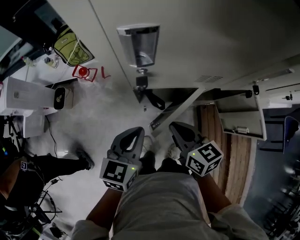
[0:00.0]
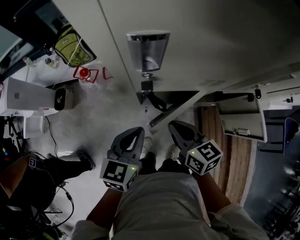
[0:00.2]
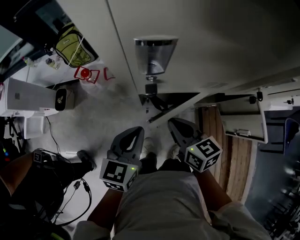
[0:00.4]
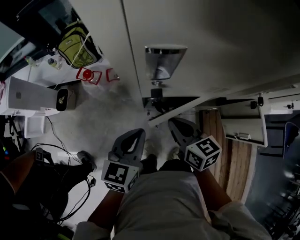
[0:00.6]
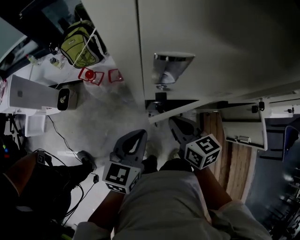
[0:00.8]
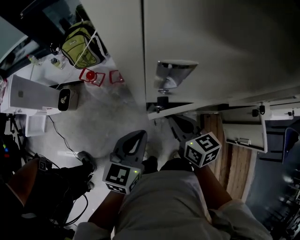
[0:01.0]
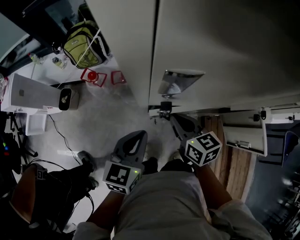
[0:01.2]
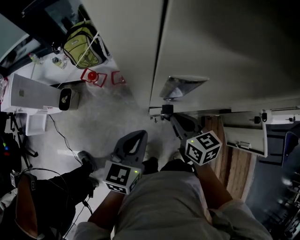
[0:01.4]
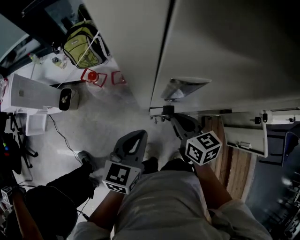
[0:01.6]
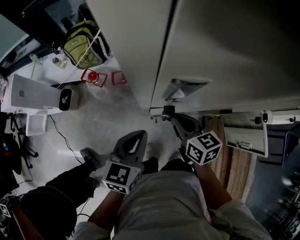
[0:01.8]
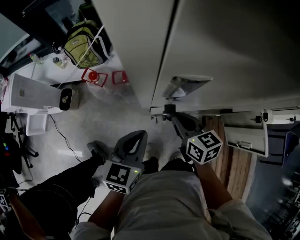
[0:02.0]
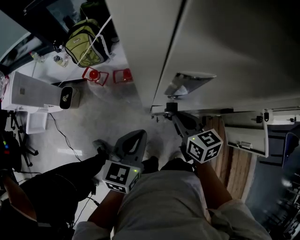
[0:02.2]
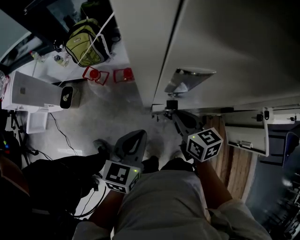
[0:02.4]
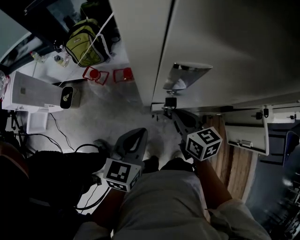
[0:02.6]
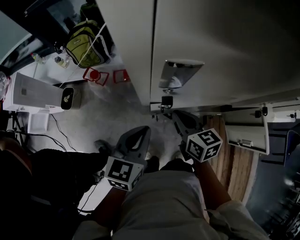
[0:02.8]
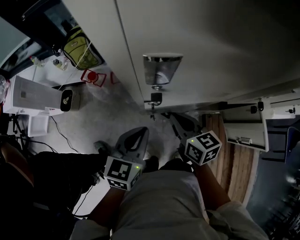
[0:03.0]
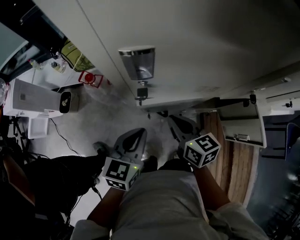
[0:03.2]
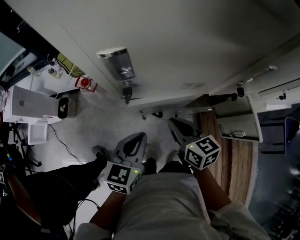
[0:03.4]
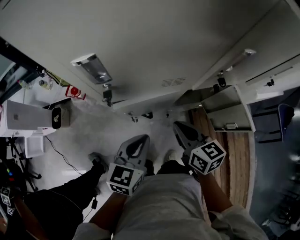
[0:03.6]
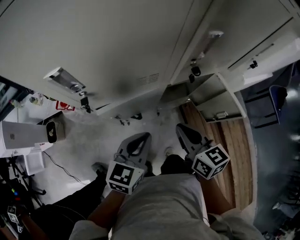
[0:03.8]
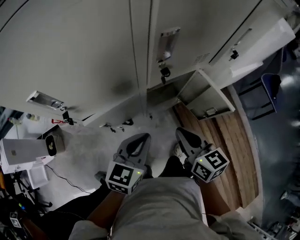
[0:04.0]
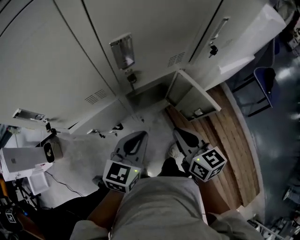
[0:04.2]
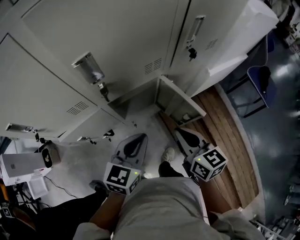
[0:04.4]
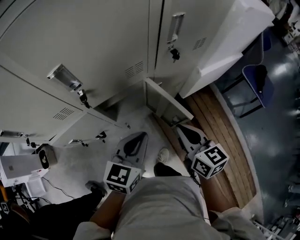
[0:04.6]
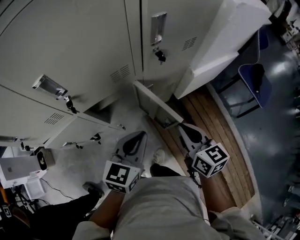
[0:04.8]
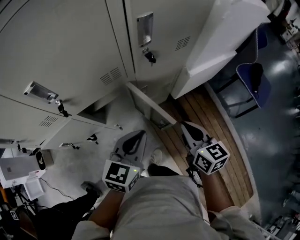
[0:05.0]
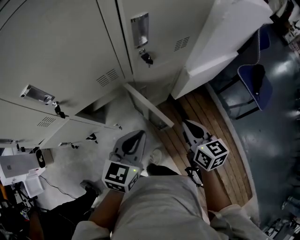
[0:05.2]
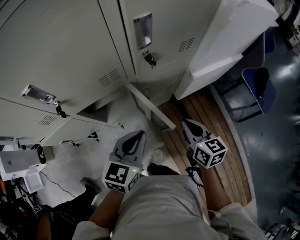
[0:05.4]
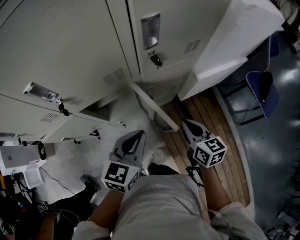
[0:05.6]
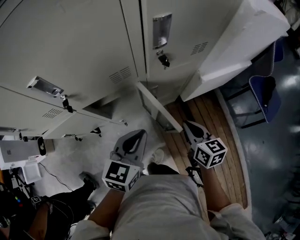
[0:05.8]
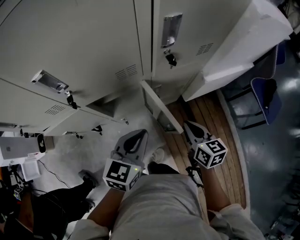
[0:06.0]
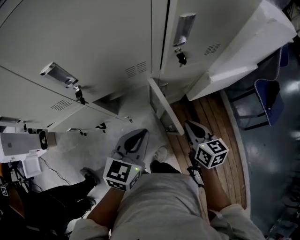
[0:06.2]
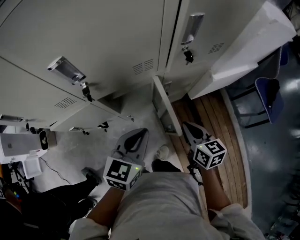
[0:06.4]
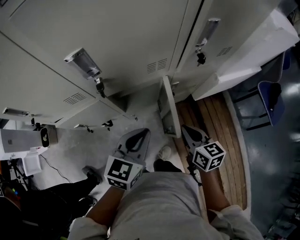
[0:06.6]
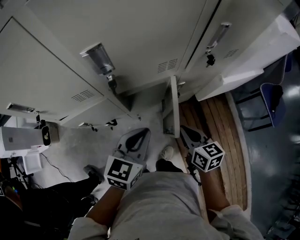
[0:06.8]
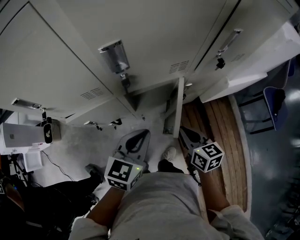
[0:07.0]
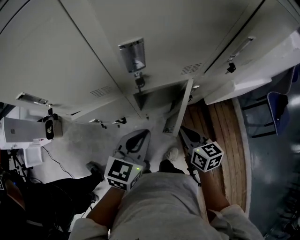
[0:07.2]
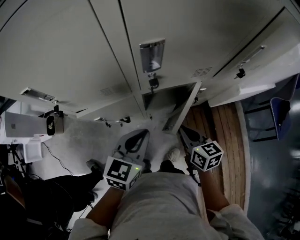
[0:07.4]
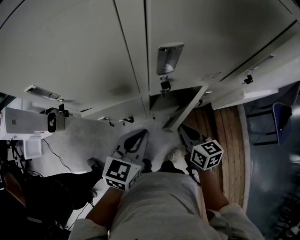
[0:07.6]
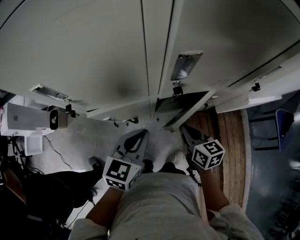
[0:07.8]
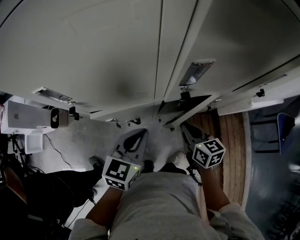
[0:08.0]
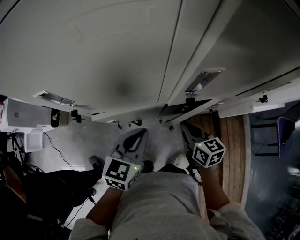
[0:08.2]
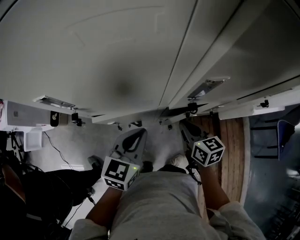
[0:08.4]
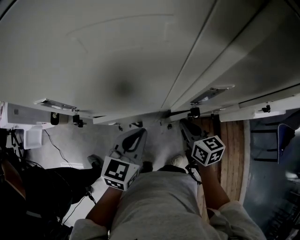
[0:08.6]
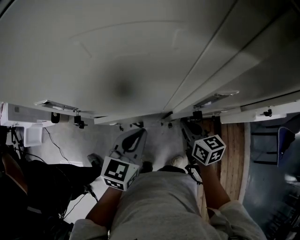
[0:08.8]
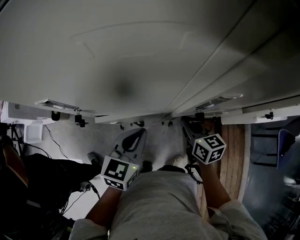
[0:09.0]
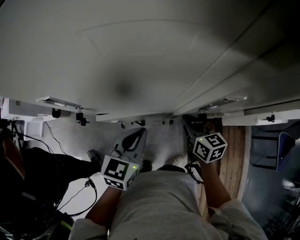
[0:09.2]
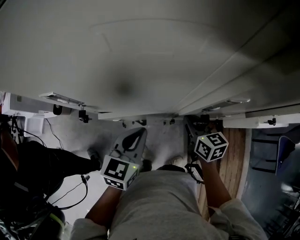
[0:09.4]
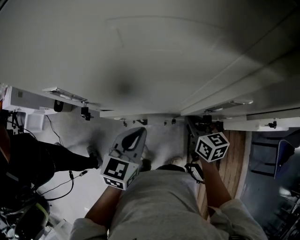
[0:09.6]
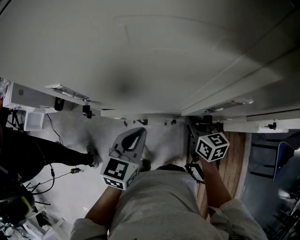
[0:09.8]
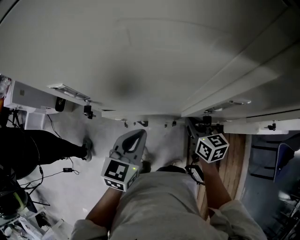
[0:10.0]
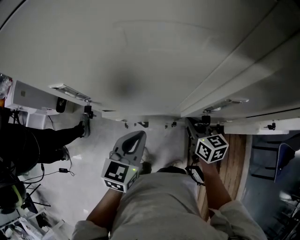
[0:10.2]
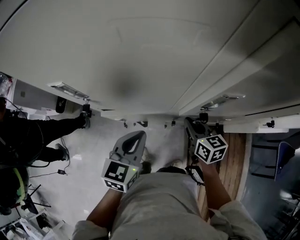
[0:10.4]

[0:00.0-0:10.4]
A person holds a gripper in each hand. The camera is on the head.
0:00.0 to 0:01.4: The right gripper is displaced forward by about 10 cm. Meanwhile the left gripper ends up some 5 cm from where it was.
0:01.4 to 0:03.0: The grippers move only a little.
0:03.0 to 0:04.4: The left gripper changes place by about 40 cm, and rotates about 30 degrees. The right gripper changes place by about 40 cm, and rotates approximately 30 degrees.
0:04.4 to 0:06.0: The right gripper moves to the right, downward and forward, some 20 cm. Meanwhile the left gripper moves to the right, some 10 cm.
0:06.0 to 0:07.4: The two grippers go approximately 20 cm to the left.
0:07.4 to 0:09.0: The left gripper heads to the left and forward, covering about 10 cm; the right gripper heads forward and to the left, covering approximately 15 cm.
0:09.0 to 0:10.4: The grippers move only a little.

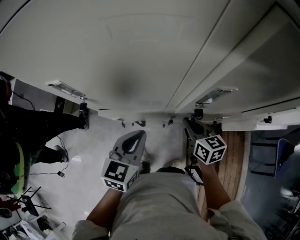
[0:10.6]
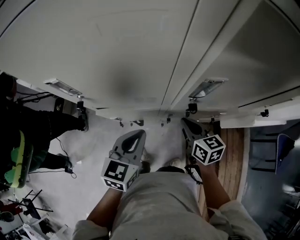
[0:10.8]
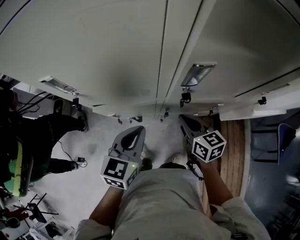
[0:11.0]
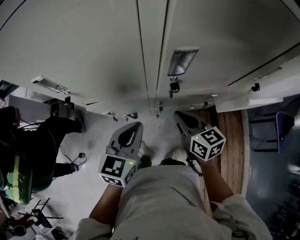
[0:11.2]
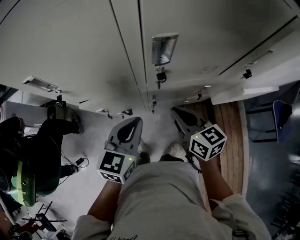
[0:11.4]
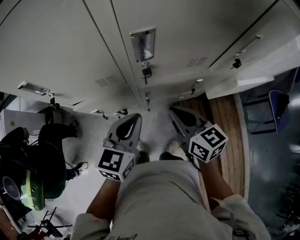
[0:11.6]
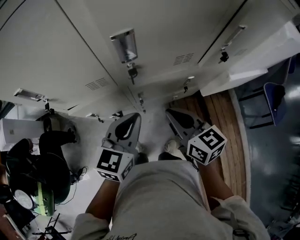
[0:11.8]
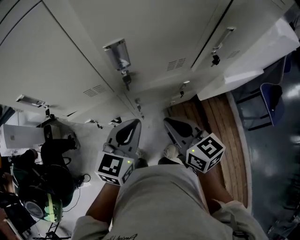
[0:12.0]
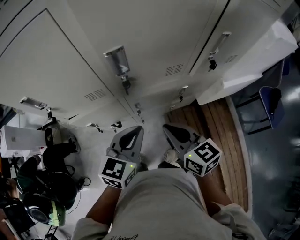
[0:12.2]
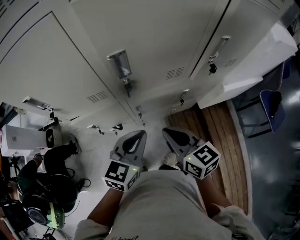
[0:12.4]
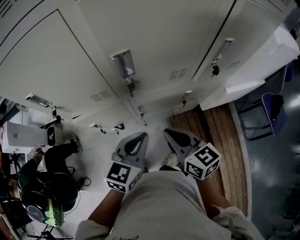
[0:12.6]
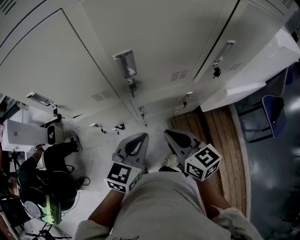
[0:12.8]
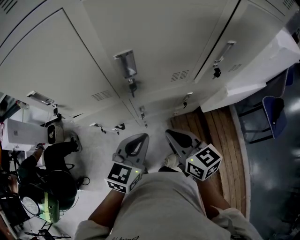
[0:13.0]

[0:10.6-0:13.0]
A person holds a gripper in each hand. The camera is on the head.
0:10.6 to 0:11.8: The left gripper goes roughly 15 cm to the right and backward, while the right gripper is displaced backward, upward and to the right by roughly 15 cm.
0:11.8 to 0:13.0: The grippers move only a little.

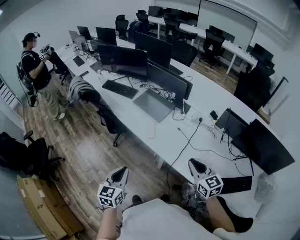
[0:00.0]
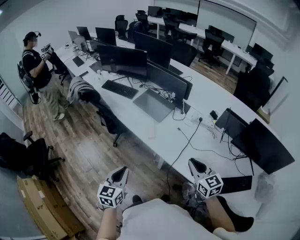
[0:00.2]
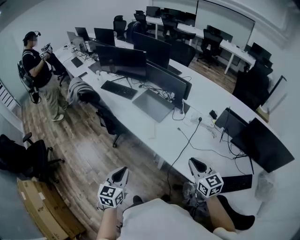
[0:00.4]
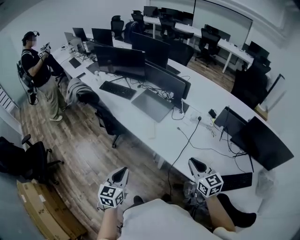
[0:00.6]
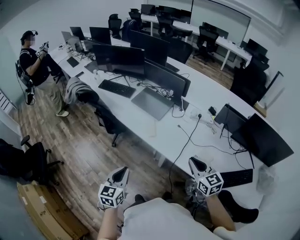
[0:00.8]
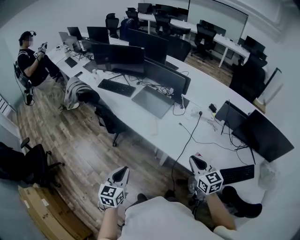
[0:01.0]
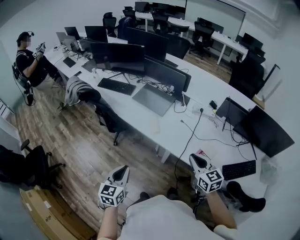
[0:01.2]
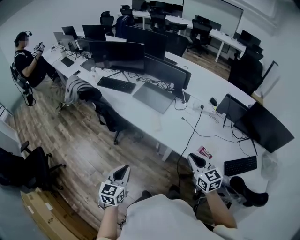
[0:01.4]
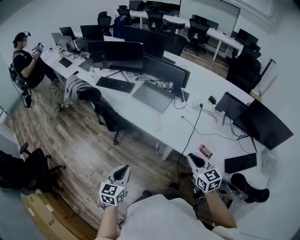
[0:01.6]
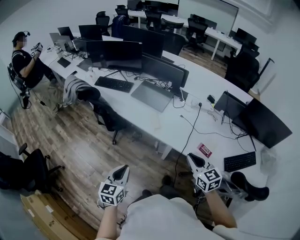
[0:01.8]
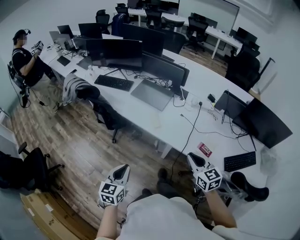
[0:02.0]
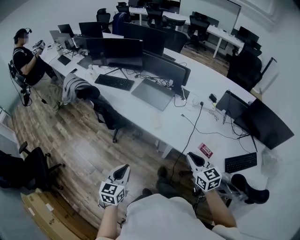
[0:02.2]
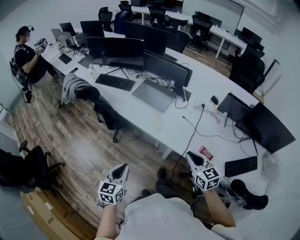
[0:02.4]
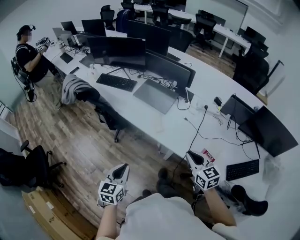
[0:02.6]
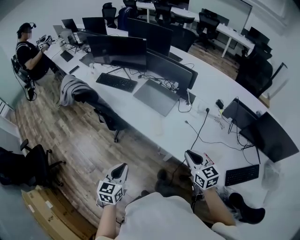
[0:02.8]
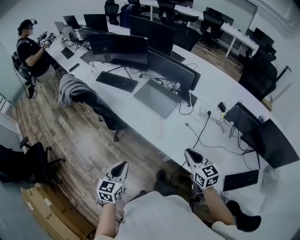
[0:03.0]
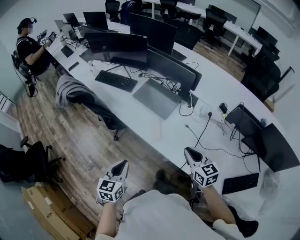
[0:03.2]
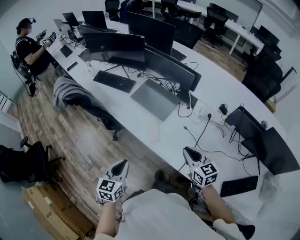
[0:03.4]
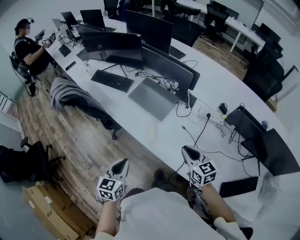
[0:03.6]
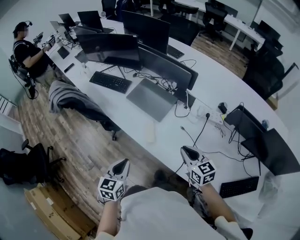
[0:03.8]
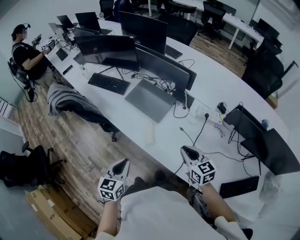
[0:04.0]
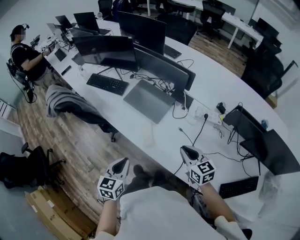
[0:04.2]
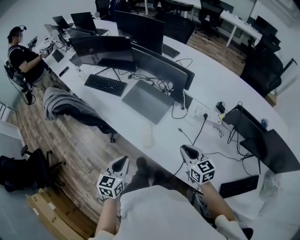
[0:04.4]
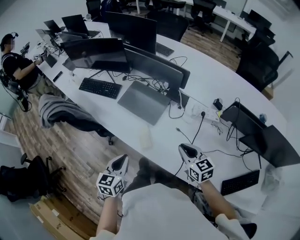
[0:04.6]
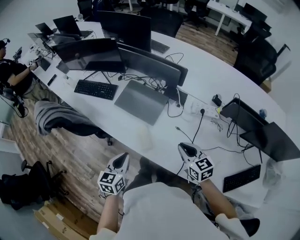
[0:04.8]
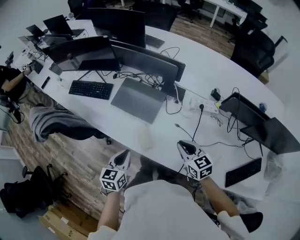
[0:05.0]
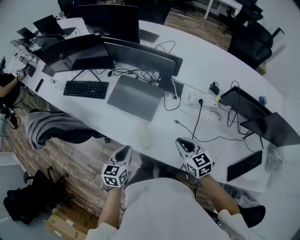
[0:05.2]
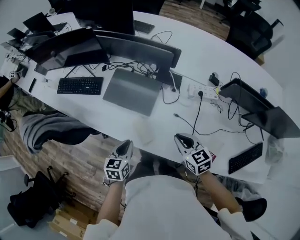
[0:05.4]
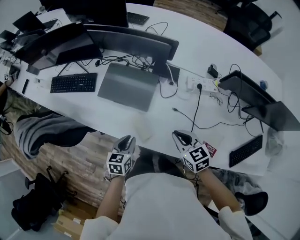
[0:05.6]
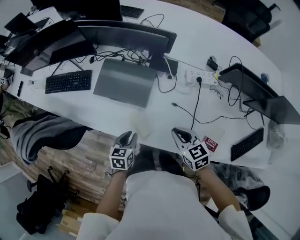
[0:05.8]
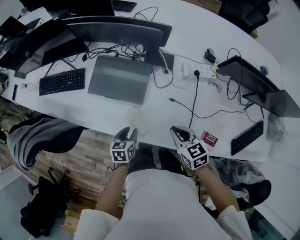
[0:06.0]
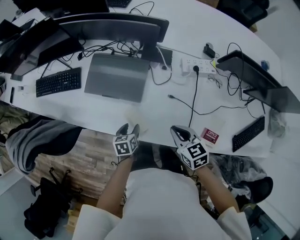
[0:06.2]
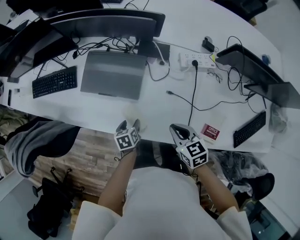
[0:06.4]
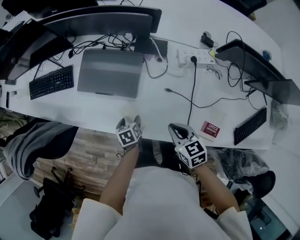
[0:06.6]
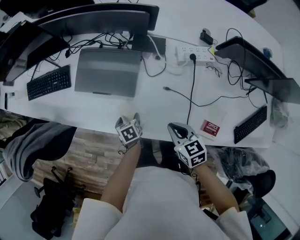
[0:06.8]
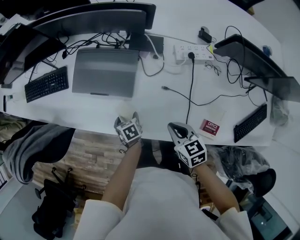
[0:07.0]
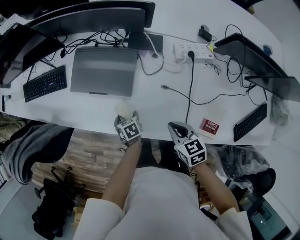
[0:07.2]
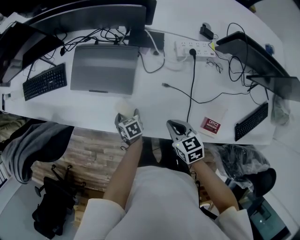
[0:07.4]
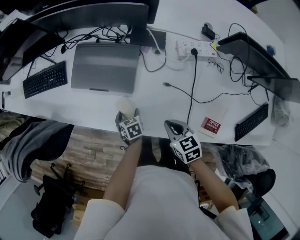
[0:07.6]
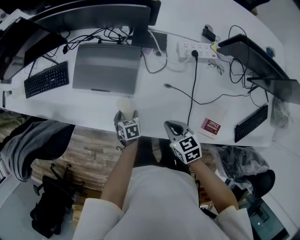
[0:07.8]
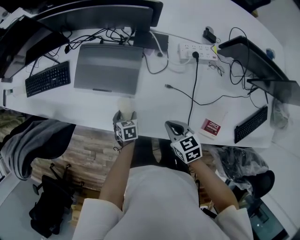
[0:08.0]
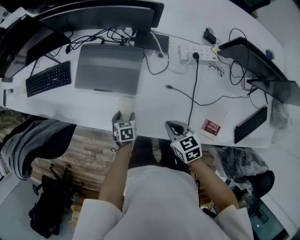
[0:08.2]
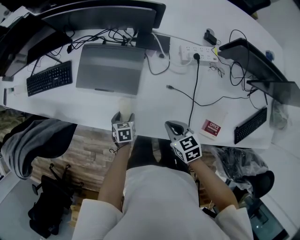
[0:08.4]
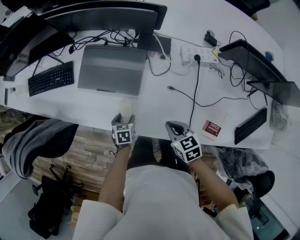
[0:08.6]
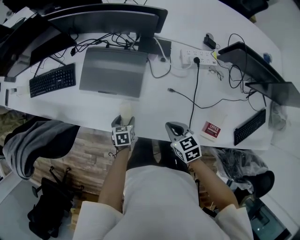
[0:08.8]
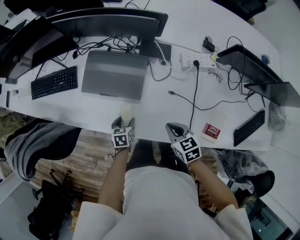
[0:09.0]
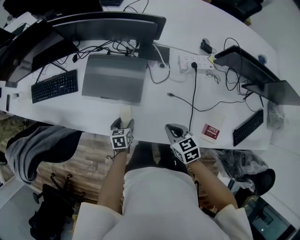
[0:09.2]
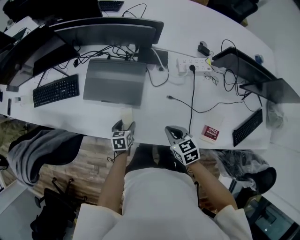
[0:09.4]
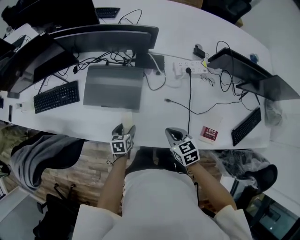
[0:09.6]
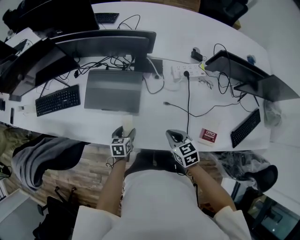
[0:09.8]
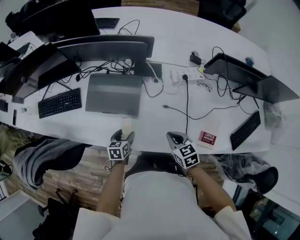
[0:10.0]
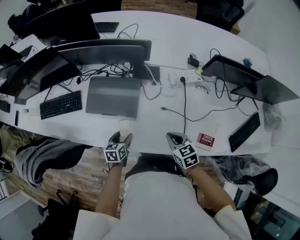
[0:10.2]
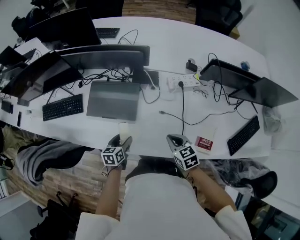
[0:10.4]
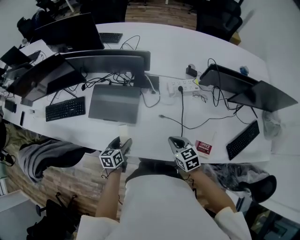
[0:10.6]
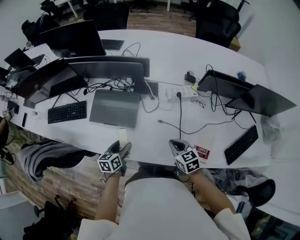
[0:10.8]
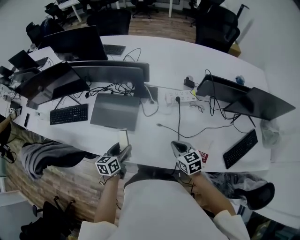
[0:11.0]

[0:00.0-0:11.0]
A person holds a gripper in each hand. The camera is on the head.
0:00.0 to 0:01.6: The grippers both shift to the left by roughly 10 cm.
0:01.6 to 0:03.2: The grippers both shift forward by approximately 20 cm.
0:03.2 to 0:04.8: The right gripper heads forward, to the right and downward, covering about 15 cm, while the left gripper is displaced forward and to the right by approximately 20 cm.
0:04.8 to 0:06.2: The left gripper heads downward and forward, covering some 30 cm, changes its angle by roughly 30 degrees, and opens up. Meanwhile the right gripper heads downward, covering approximately 10 cm, and changes its angle by approximately 20 degrees.
0:06.2 to 0:07.8: The two grippers go approximately 10 cm downward. The left gripper opens.
0:07.8 to 0:09.4: The left gripper shifts roughly 5 cm upward.
0:09.4 to 0:11.0: The right gripper is displaced to the right and upward by approximately 15 cm; the left gripper goes roughly 20 cm upward, and changes its angle by roughly 20 degrees.
